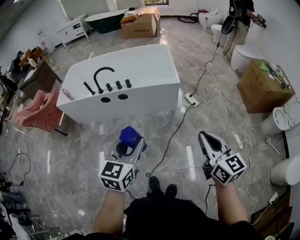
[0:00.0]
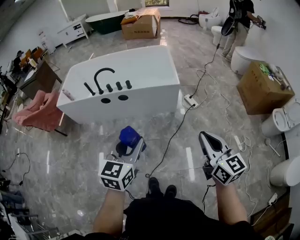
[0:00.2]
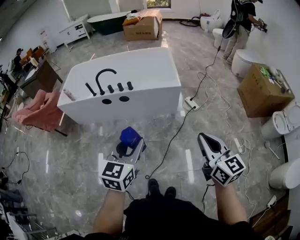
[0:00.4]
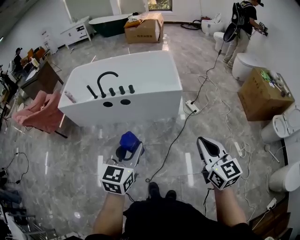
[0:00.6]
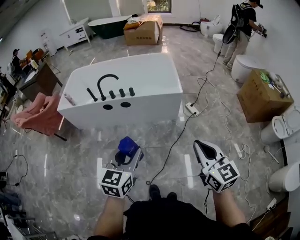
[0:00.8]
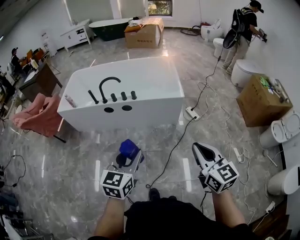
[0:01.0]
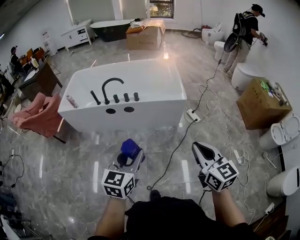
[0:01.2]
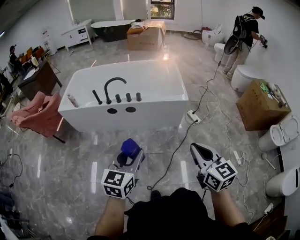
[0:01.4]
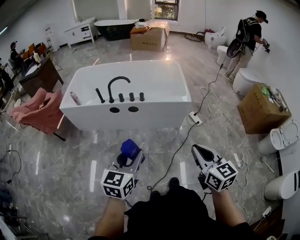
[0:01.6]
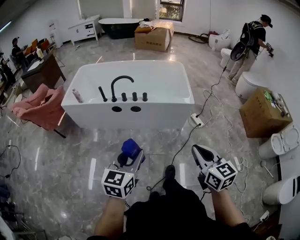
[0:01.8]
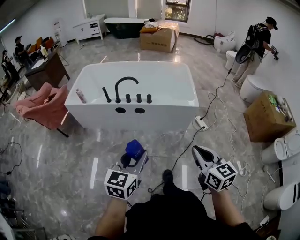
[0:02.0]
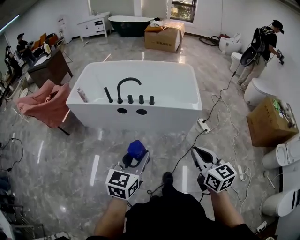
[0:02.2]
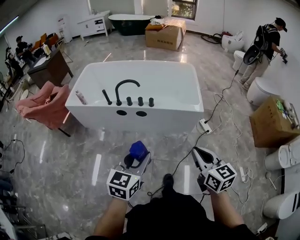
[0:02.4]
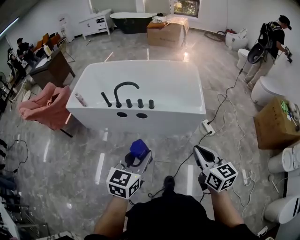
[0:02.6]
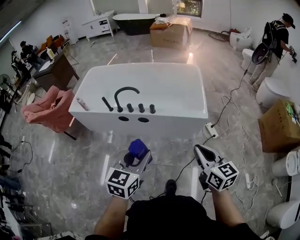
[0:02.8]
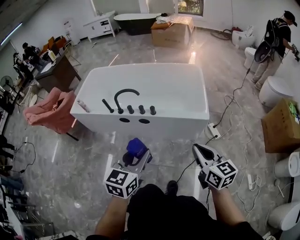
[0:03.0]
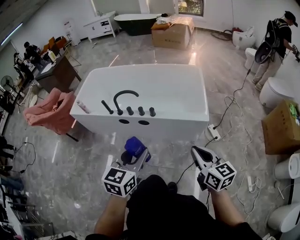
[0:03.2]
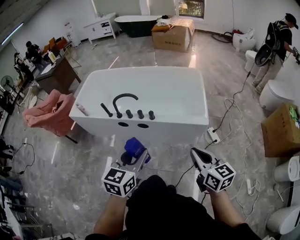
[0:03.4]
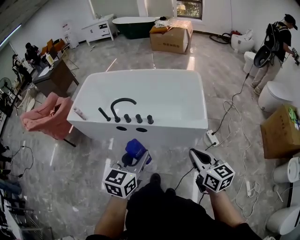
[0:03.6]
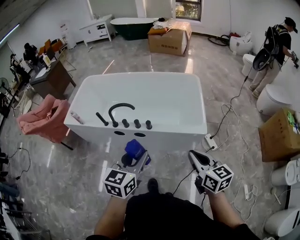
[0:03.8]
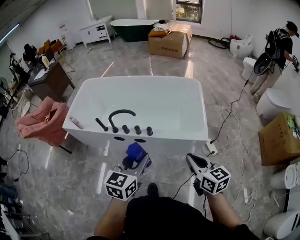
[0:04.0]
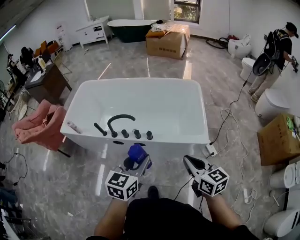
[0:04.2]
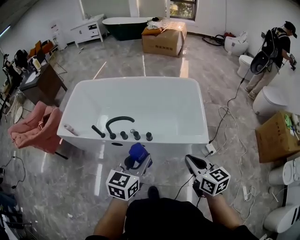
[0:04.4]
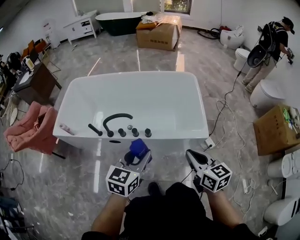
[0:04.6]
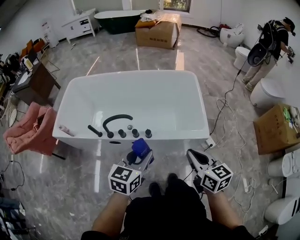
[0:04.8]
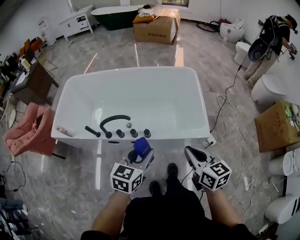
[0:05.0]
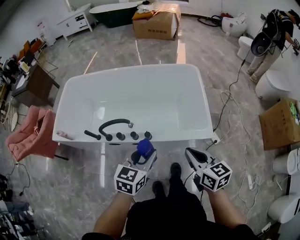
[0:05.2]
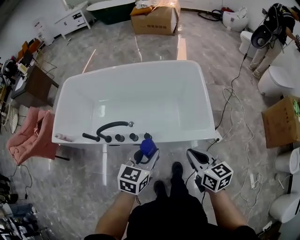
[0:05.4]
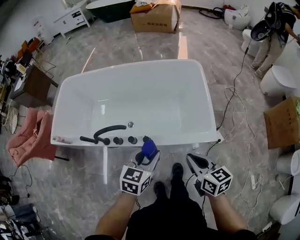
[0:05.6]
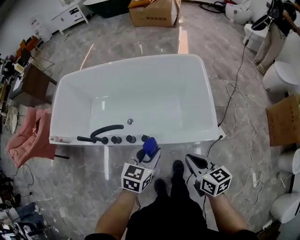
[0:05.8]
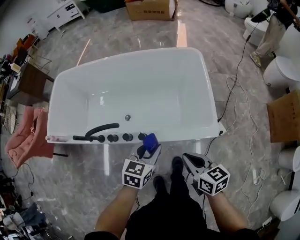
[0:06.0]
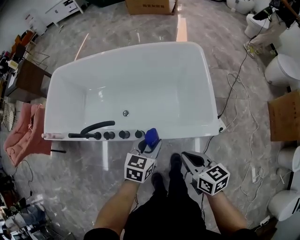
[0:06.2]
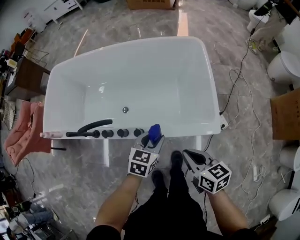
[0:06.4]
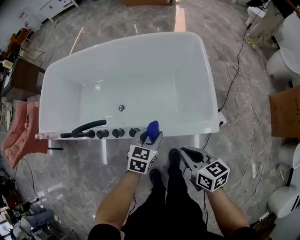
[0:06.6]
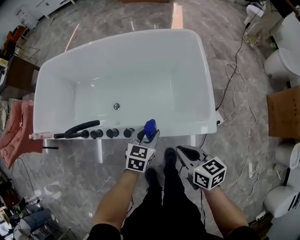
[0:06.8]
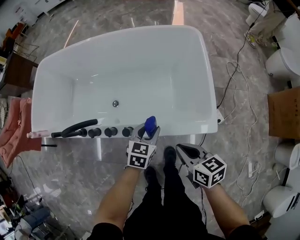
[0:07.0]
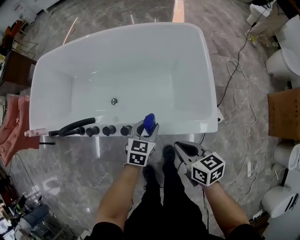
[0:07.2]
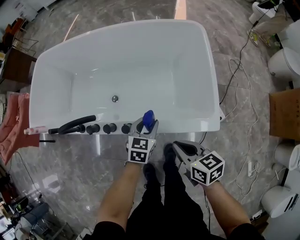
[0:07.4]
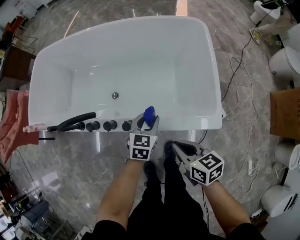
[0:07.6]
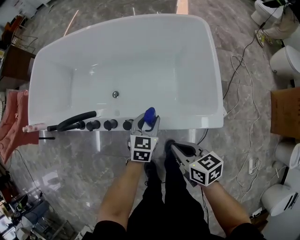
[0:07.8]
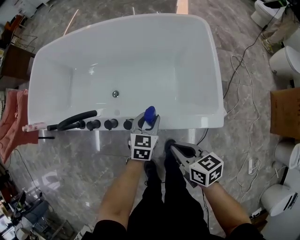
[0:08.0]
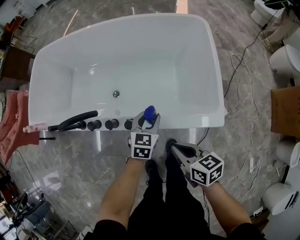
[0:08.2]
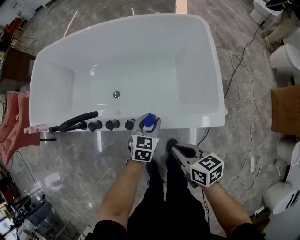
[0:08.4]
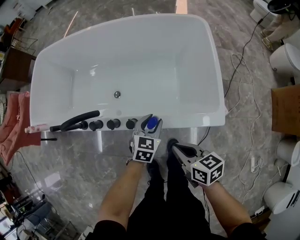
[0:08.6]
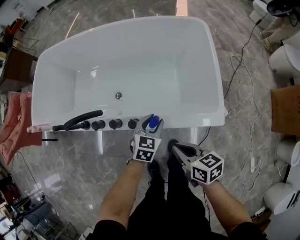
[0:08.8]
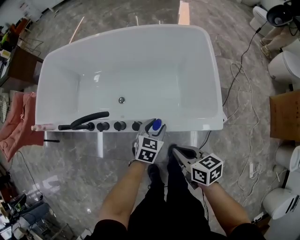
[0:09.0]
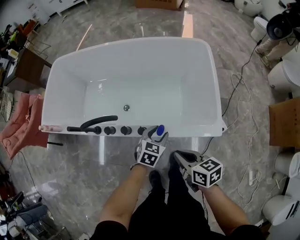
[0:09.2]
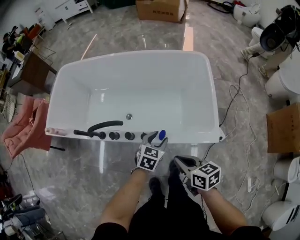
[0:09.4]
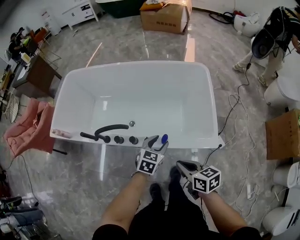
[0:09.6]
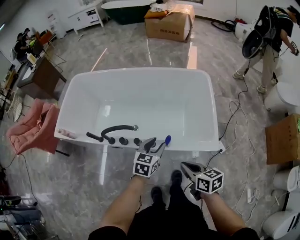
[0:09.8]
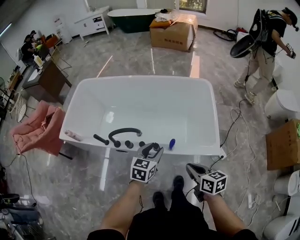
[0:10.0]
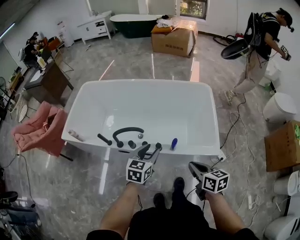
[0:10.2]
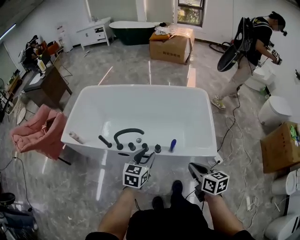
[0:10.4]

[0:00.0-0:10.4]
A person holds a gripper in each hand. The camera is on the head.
0:00.0 to 0:01.4: The grippers both shift to the left by some 15 cm.
0:01.4 to 0:03.0: Both grippers move forward, roughly 20 cm.
0:03.0 to 0:04.4: Both grippers move forward, about 20 cm.
0:04.4 to 0:06.0: The left gripper travels downward, forward and to the right by about 30 cm. Meanwhile the right gripper heads downward and forward, covering about 20 cm.
0:06.0 to 0:07.4: The right gripper is displaced downward by about 10 cm. The left gripper moves downward and forward, about 20 cm.
0:07.4 to 0:09.0: The right gripper ends up approximately 5 cm from where it was.
0:09.0 to 0:10.4: The right gripper shifts approximately 20 cm upward and backward, while the left gripper shifts some 30 cm upward and to the left, and changes its angle by roughly 20 degrees.

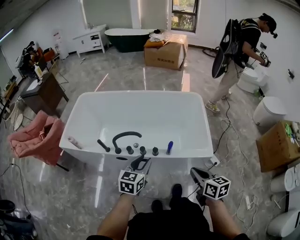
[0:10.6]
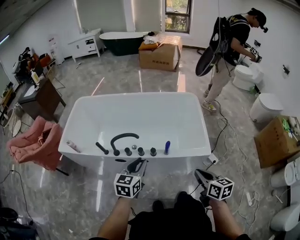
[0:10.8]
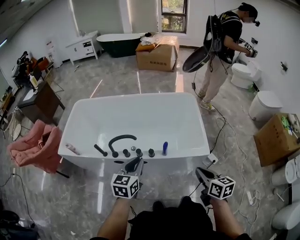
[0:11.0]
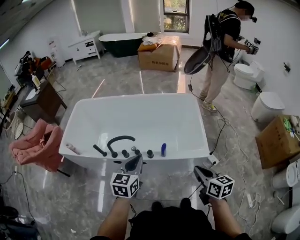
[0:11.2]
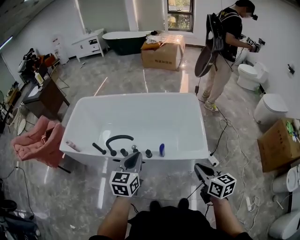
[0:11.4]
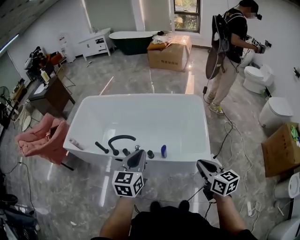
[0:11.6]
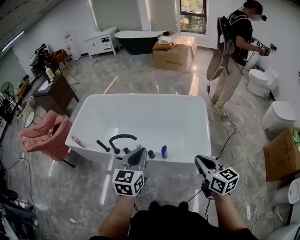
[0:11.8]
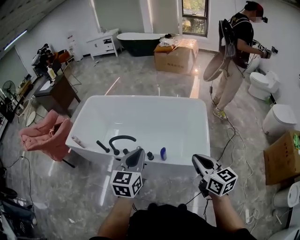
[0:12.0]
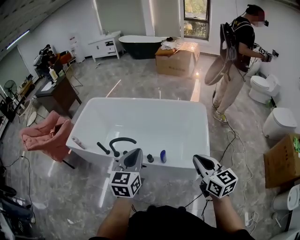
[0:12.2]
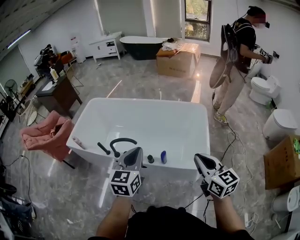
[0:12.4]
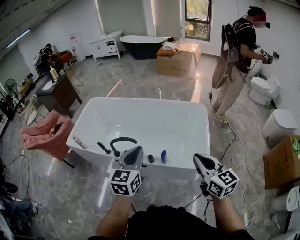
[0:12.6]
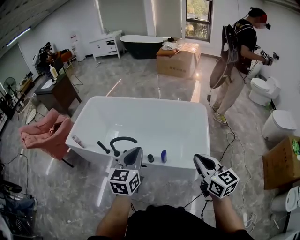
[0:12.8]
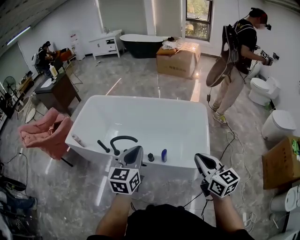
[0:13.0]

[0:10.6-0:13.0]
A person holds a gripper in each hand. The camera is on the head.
0:10.6 to 0:11.8: The left gripper goes about 15 cm upward and to the right, and closes its fingers. The right gripper moves to the right, upward and forward, roughly 15 cm.
0:11.8 to 0:13.0: The grippers move only a little.

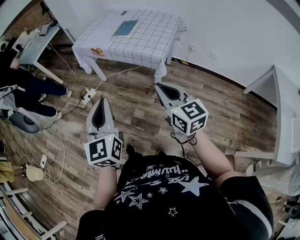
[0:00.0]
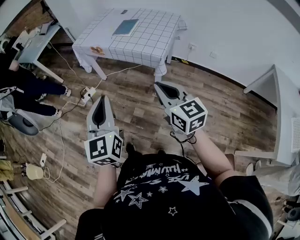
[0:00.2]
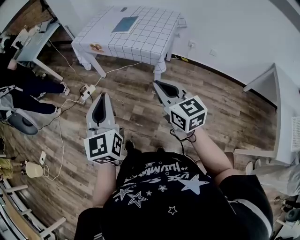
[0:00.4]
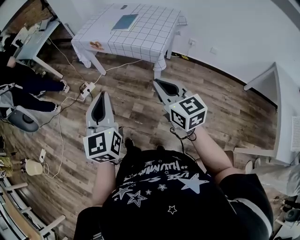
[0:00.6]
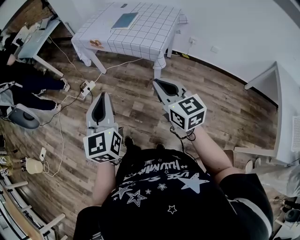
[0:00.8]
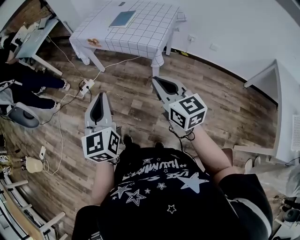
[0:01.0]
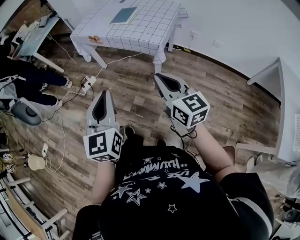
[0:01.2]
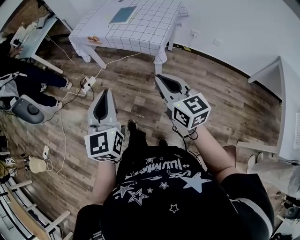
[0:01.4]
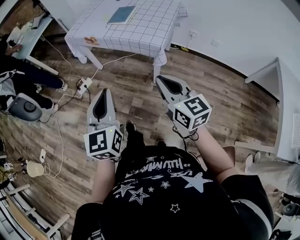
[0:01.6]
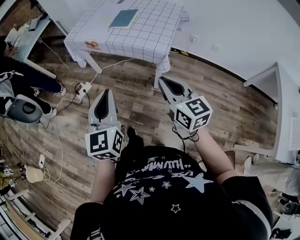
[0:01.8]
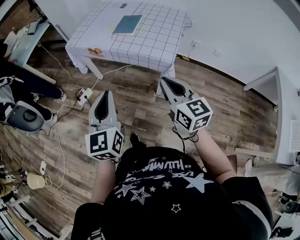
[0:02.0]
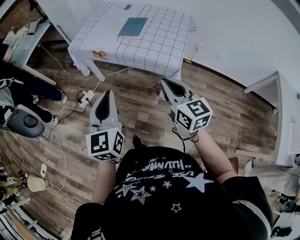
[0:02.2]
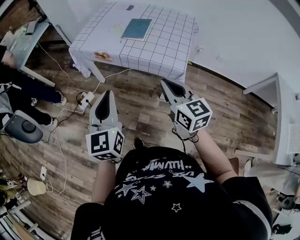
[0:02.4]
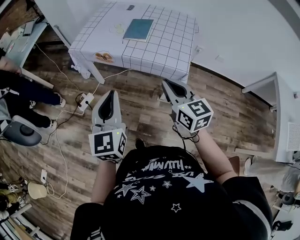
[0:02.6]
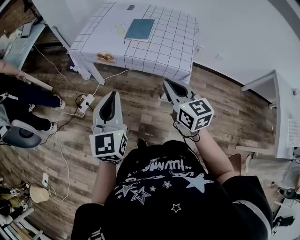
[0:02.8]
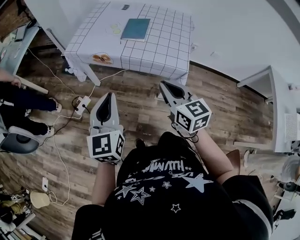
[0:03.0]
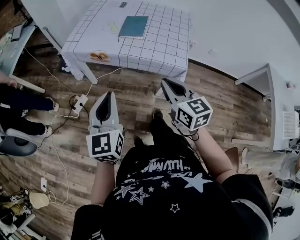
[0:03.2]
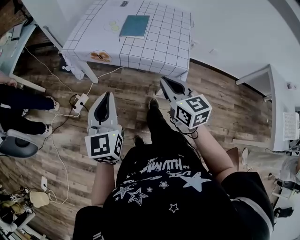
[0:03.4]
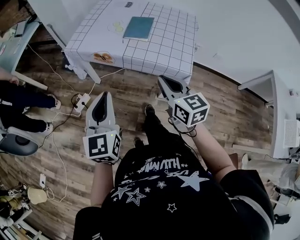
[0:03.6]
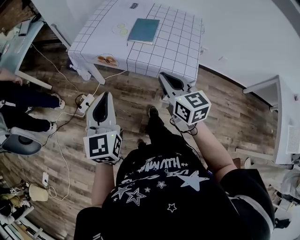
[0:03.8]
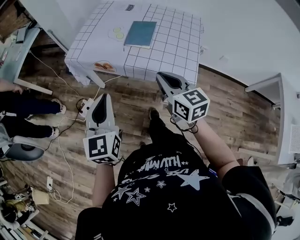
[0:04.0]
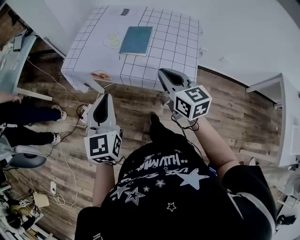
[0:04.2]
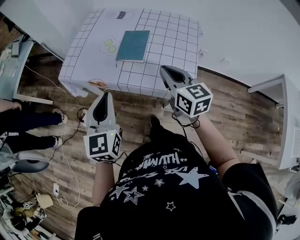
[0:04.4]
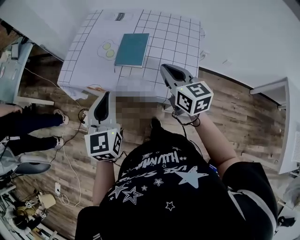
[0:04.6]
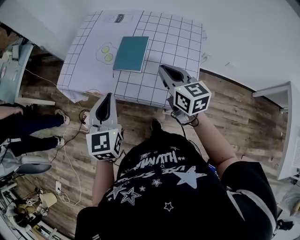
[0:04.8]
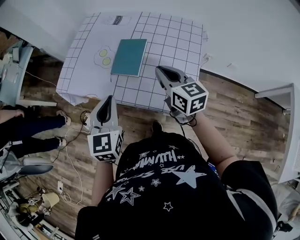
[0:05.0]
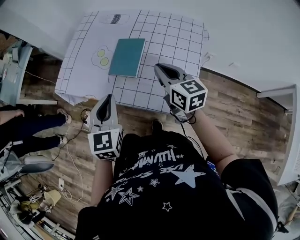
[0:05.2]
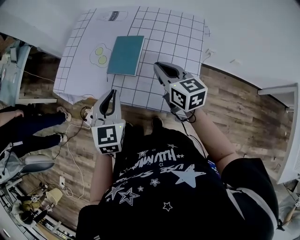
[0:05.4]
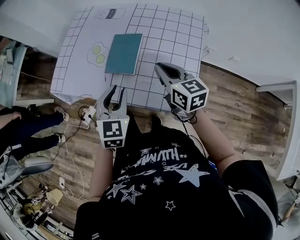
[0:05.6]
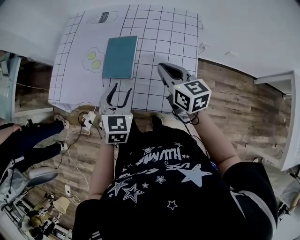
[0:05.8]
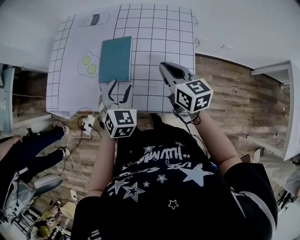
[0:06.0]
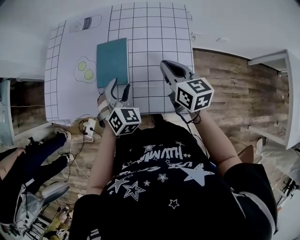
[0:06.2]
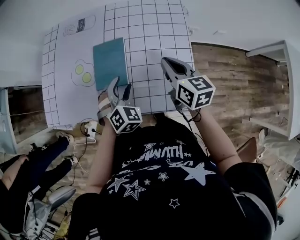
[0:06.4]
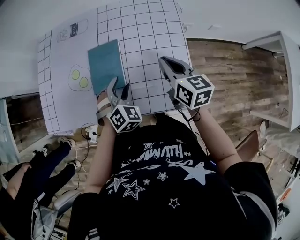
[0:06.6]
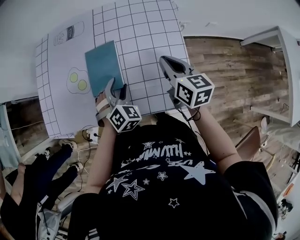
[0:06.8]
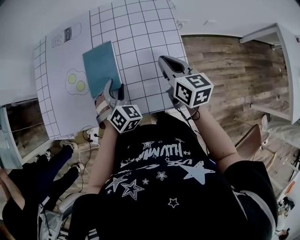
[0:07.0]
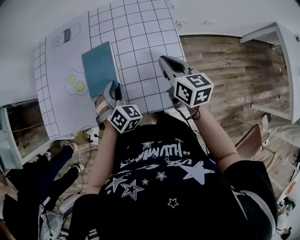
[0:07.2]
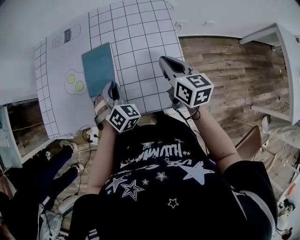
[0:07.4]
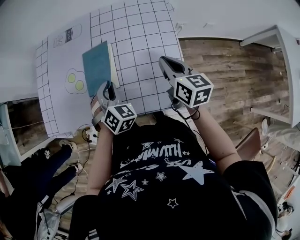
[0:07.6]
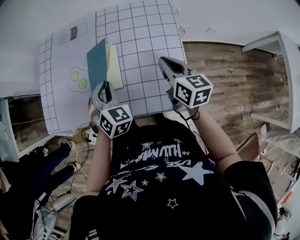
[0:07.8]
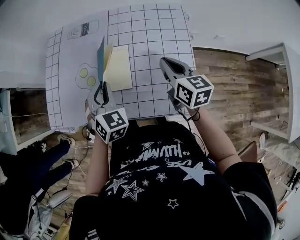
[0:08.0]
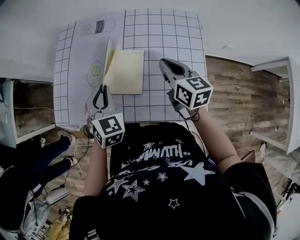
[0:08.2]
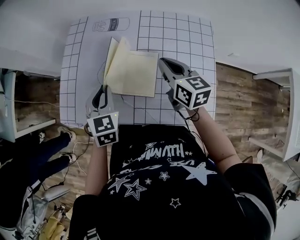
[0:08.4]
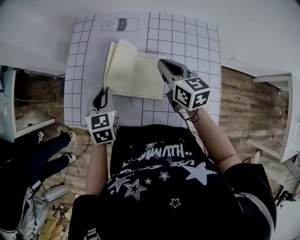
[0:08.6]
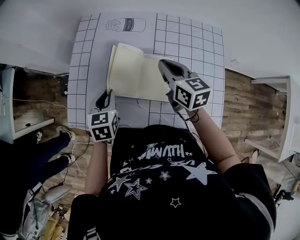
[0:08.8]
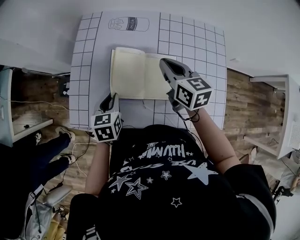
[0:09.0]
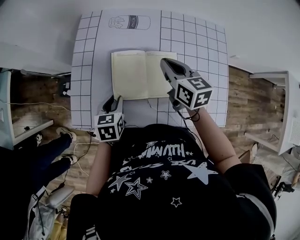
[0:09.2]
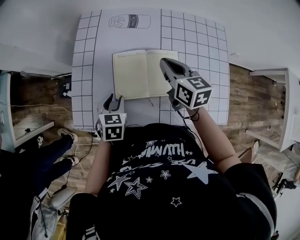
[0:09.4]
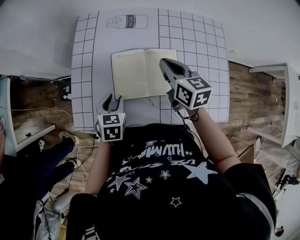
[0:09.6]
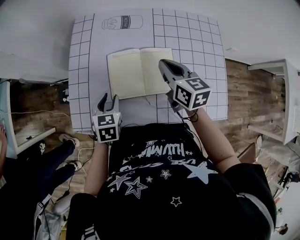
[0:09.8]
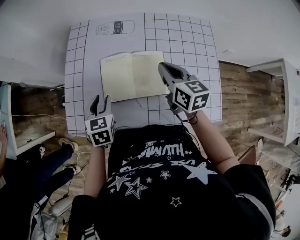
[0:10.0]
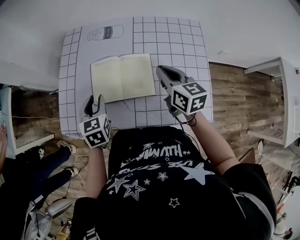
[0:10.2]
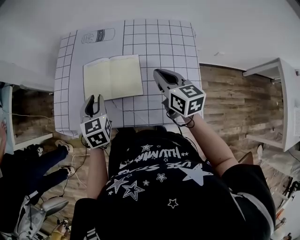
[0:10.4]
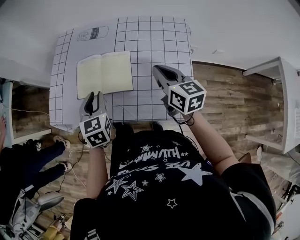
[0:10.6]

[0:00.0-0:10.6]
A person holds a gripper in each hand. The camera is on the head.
0:00.0 to 0:01.6: The left gripper changes place by approximately 5 cm.
0:01.6 to 0:03.0: The grippers both shift forward and to the left by some 25 cm.
0:03.0 to 0:04.6: The grippers both shift forward and to the right by some 25 cm.
0:04.6 to 0:06.0: The left gripper is displaced downward, forward and to the right by roughly 25 cm, swivels some 40 degrees, and opens; the right gripper goes about 15 cm forward, to the right and downward.
0:06.0 to 0:07.6: The right gripper heads to the right, covering about 5 cm. Meanwhile the left gripper moves about 5 cm, and closes.
0:07.6 to 0:09.0: The right gripper heads to the left and forward, covering about 30 cm, while the left gripper travels to the left by approximately 25 cm, and rotates around the line of its fingers by some 50 degrees, counterclockwise from behind.
0:09.0 to 0:10.6: The right gripper is displaced to the right and backward by roughly 20 cm. The left gripper goes about 15 cm to the right, upward and backward, and swivels roughly 20 degrees.
